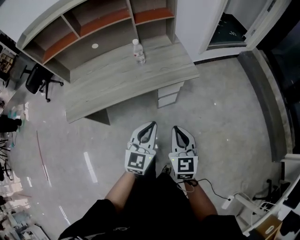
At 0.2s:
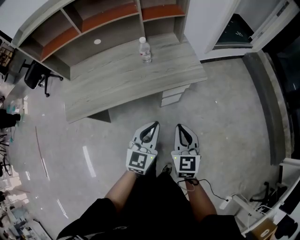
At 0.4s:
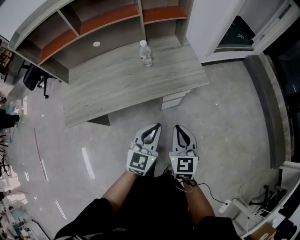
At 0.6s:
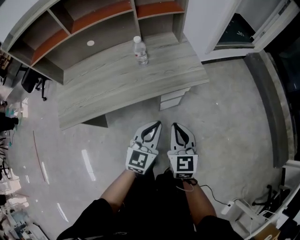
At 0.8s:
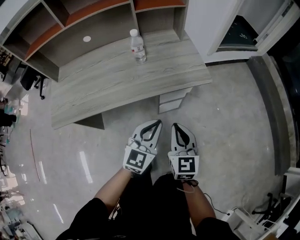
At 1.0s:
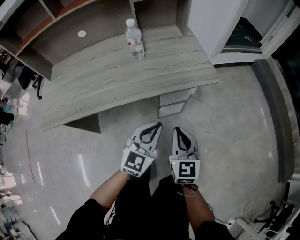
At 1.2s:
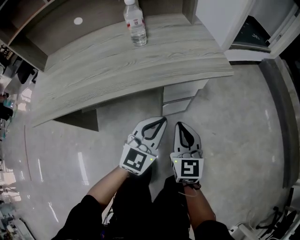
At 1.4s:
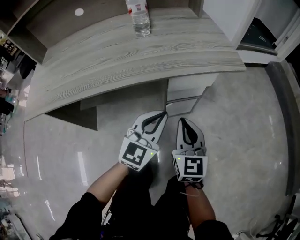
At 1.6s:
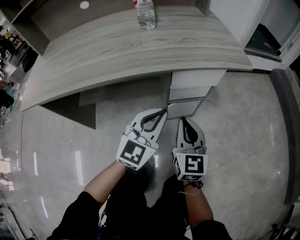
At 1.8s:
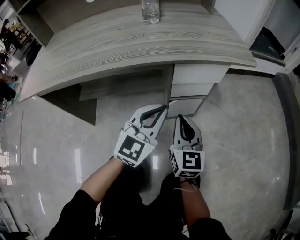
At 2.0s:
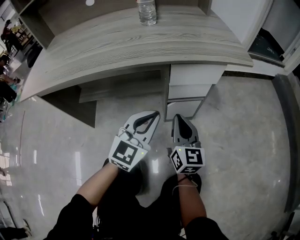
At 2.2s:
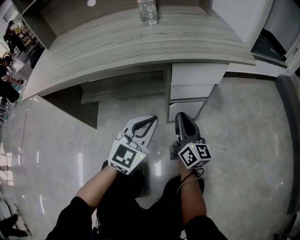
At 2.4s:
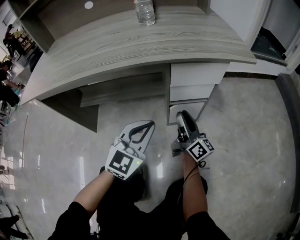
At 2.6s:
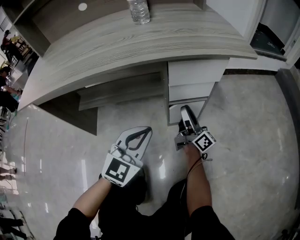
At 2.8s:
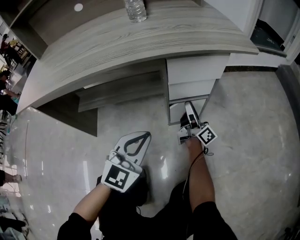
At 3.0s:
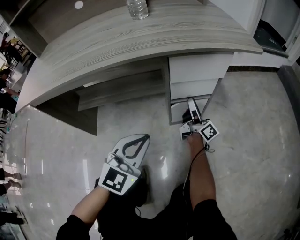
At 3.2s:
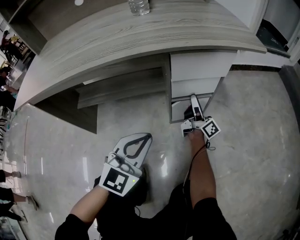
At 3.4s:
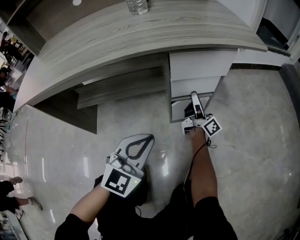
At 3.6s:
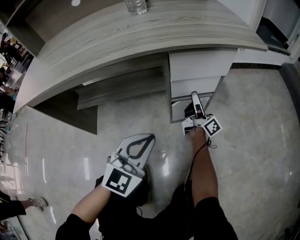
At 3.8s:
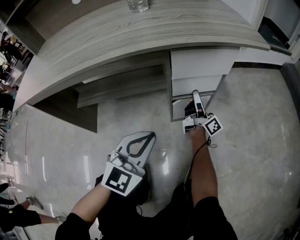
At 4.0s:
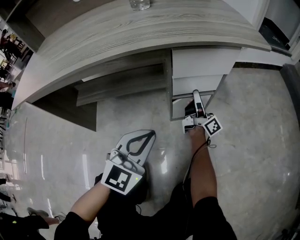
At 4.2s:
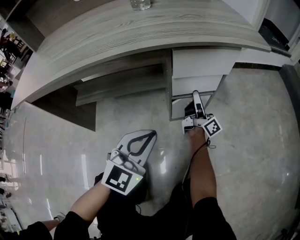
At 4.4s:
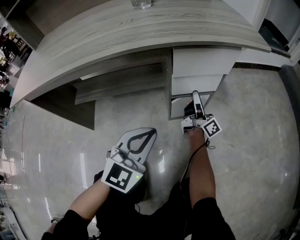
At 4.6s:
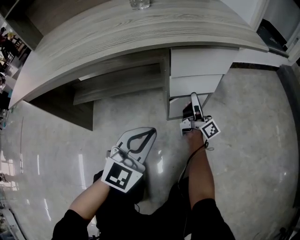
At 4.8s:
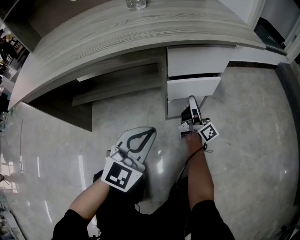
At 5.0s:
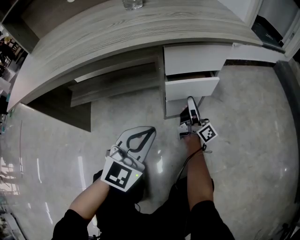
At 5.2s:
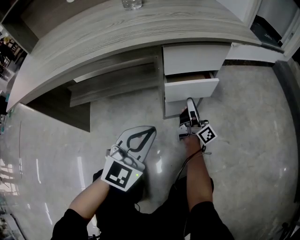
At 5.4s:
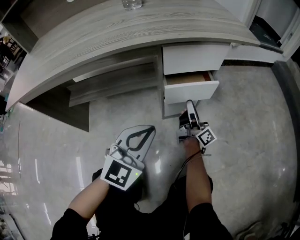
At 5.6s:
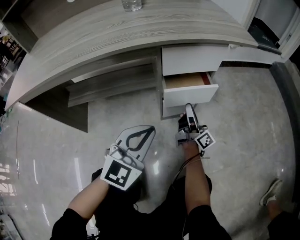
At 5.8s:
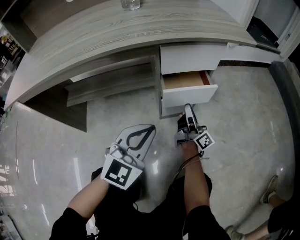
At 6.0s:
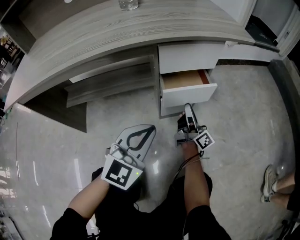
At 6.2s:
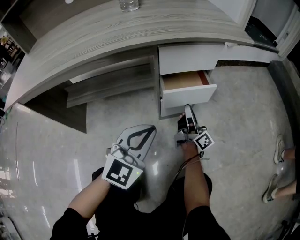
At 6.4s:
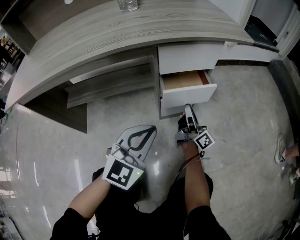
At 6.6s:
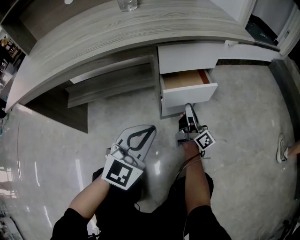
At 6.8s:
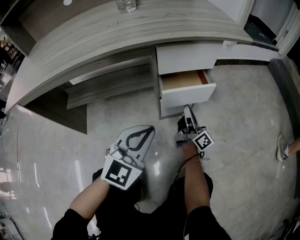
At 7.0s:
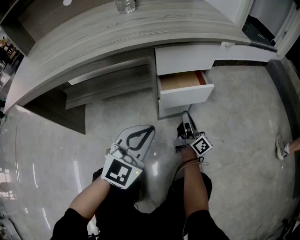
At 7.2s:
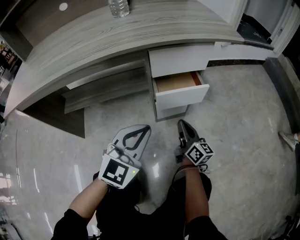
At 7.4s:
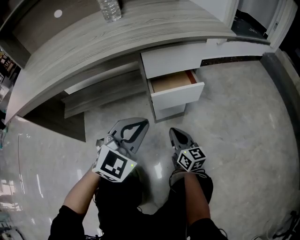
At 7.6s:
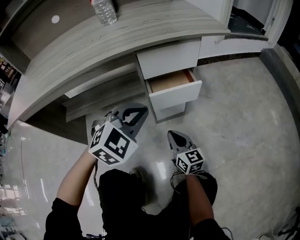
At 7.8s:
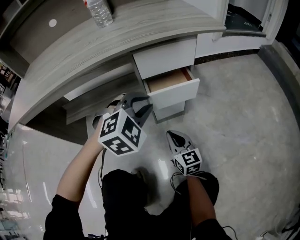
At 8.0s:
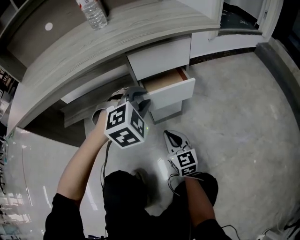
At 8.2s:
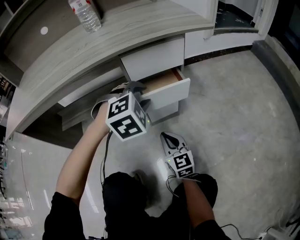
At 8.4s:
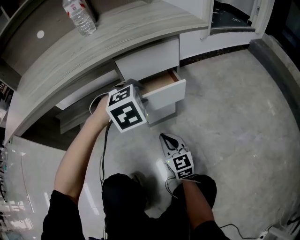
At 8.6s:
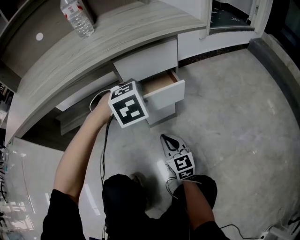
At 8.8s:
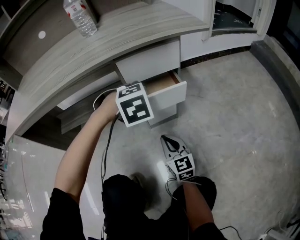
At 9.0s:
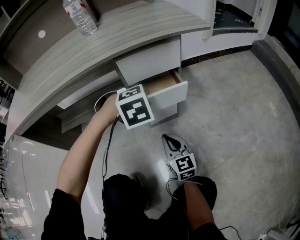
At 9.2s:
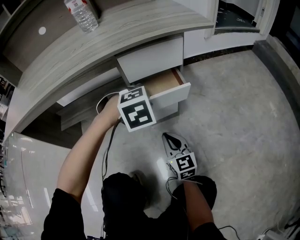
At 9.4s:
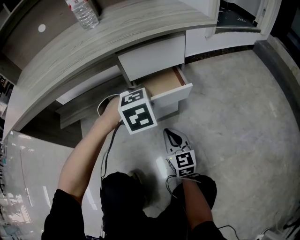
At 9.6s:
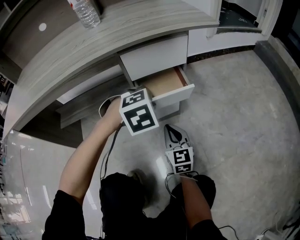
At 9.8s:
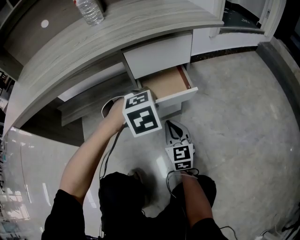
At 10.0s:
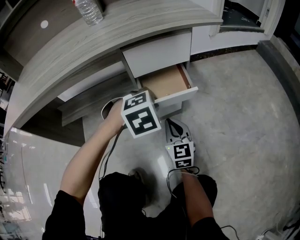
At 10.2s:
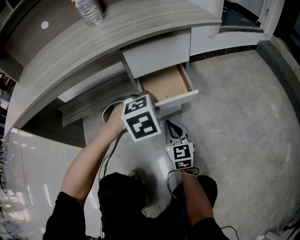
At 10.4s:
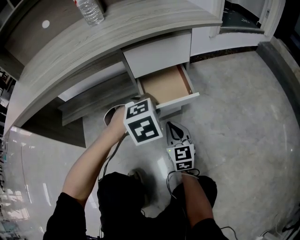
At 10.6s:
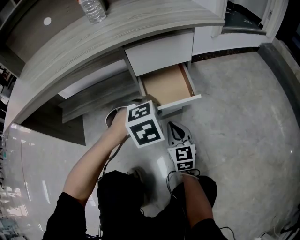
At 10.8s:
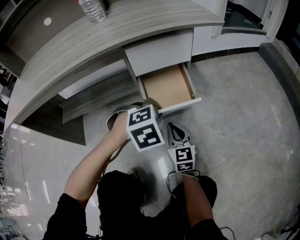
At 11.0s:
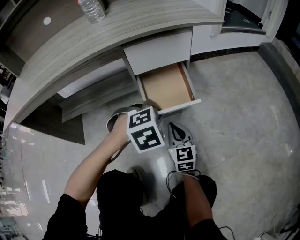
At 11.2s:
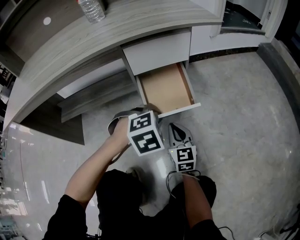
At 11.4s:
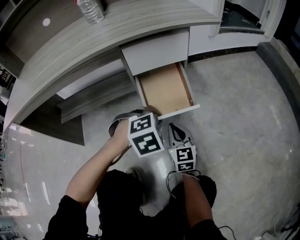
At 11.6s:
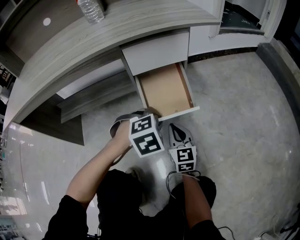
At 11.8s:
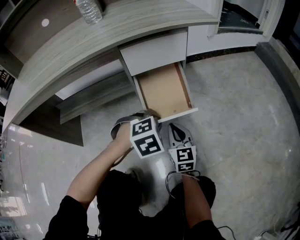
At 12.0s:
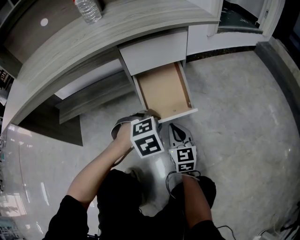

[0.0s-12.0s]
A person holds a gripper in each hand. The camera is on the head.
0.0s to 1.6s: The two grippers go approximately 40 cm downward and forward.
1.6s to 3.0s: The right gripper goes approximately 25 cm downward and forward, rolls clockwise, seen from behind, by approximately 60 degrees, and opens its fingers. Meanwhile the left gripper shifts roughly 10 cm downward and backward.
3.0s to 4.4s: The right gripper closes.
4.4s to 6.0s: The right gripper goes about 5 cm backward.
6.0s to 7.6s: The left gripper shifts some 5 cm forward, and turns by roughly 30 degrees; the right gripper goes some 10 cm backward, and points its fingers some 30 degrees further downward.
7.6s to 9.0s: The left gripper heads forward, downward and to the right, covering roughly 10 cm, tilts its fingers approximately 30 degrees downward, and opens up.
9.0s to 10.4s: The left gripper ends up roughly 5 cm from where it was.
10.4s to 12.0s: The left gripper travels downward by some 5 cm.

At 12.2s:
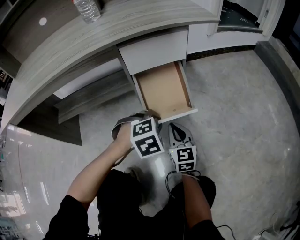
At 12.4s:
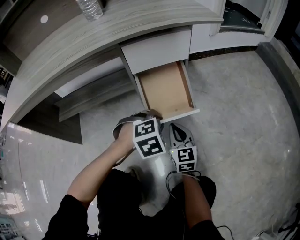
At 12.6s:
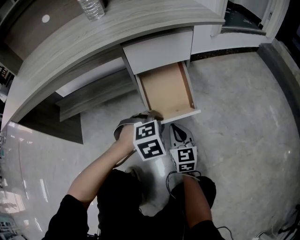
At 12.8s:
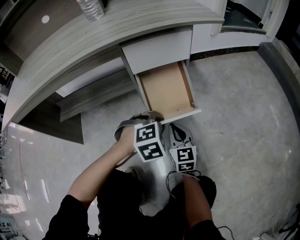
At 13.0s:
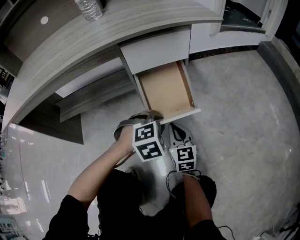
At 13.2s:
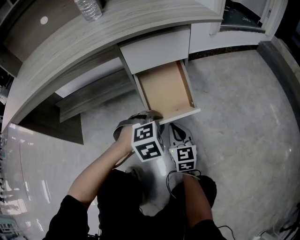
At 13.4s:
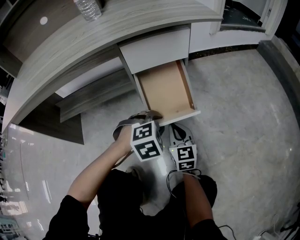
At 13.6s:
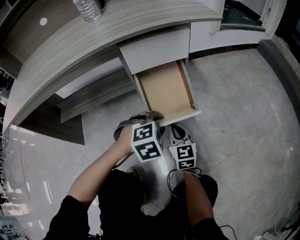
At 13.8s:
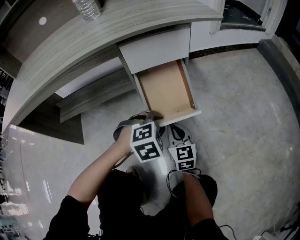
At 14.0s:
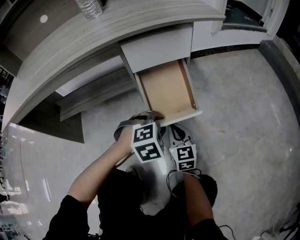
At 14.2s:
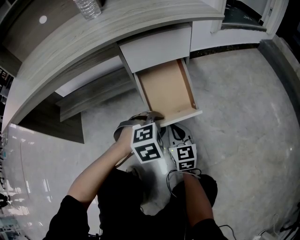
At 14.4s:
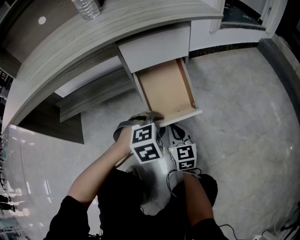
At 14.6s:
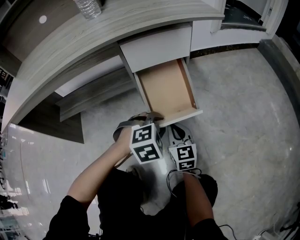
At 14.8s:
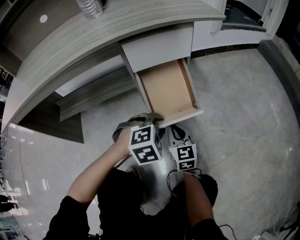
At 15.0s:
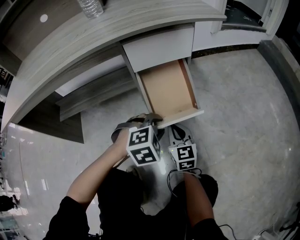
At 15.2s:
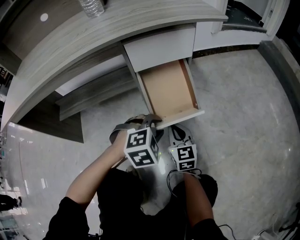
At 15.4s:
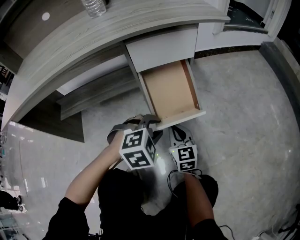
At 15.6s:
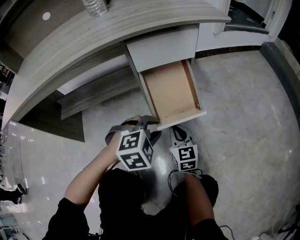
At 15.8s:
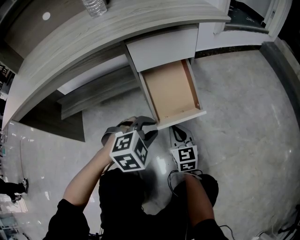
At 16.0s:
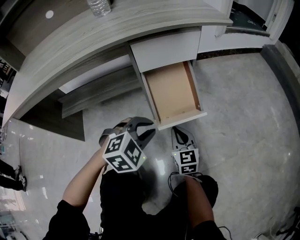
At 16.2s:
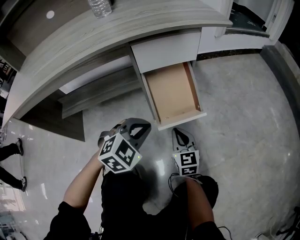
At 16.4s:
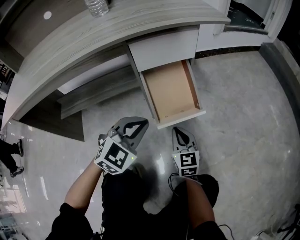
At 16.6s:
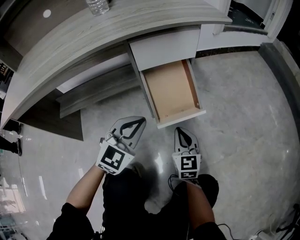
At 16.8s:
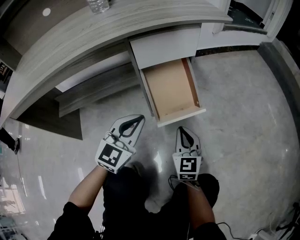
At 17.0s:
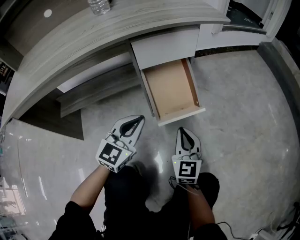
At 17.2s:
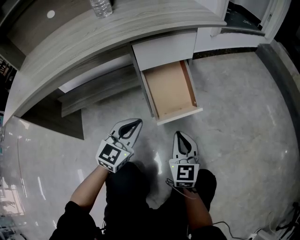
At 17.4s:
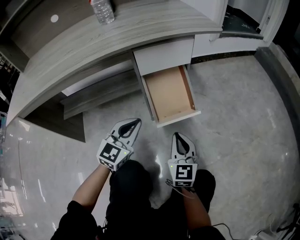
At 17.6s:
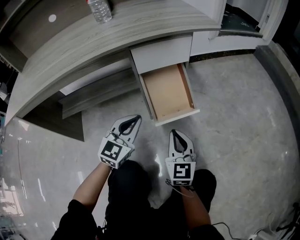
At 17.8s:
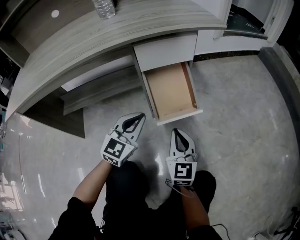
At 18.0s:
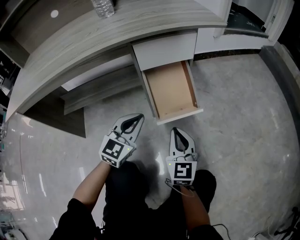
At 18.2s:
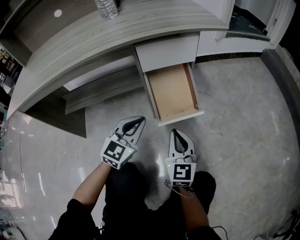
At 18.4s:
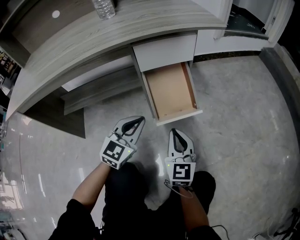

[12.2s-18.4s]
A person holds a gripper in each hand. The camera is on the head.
12.2s to 15.4s: The grippers make only small movements.
15.4s to 16.8s: The right gripper ends up roughly 5 cm from where it was, while the left gripper shifts roughly 10 cm upward and to the left, tips its fingers upward by roughly 40 degrees, and closes its fingers.
16.8s to 18.4s: The right gripper moves upward, about 5 cm.

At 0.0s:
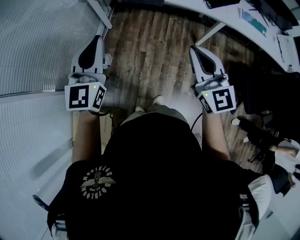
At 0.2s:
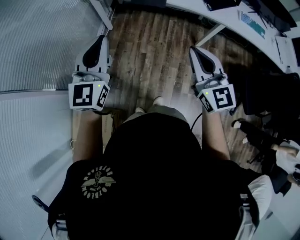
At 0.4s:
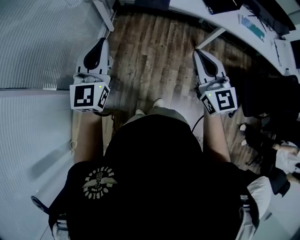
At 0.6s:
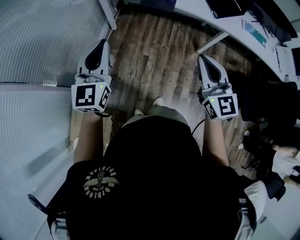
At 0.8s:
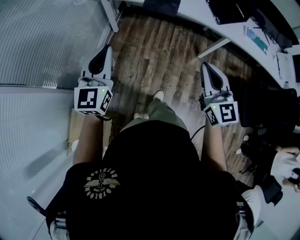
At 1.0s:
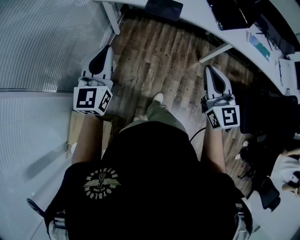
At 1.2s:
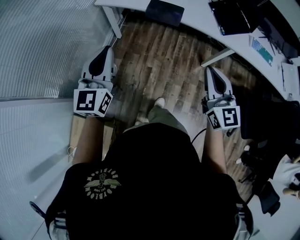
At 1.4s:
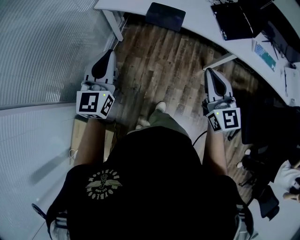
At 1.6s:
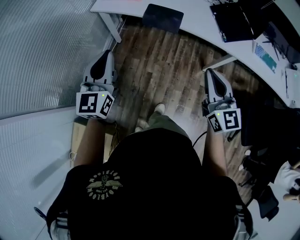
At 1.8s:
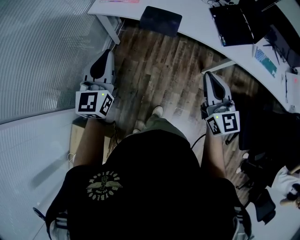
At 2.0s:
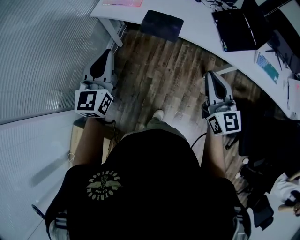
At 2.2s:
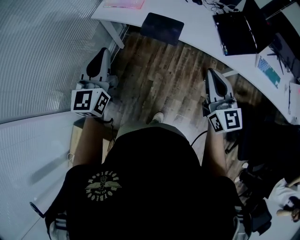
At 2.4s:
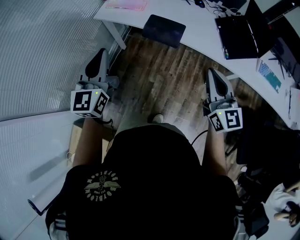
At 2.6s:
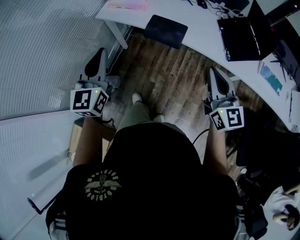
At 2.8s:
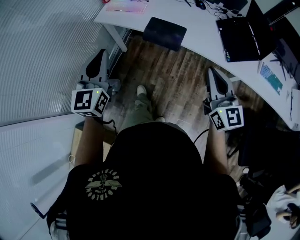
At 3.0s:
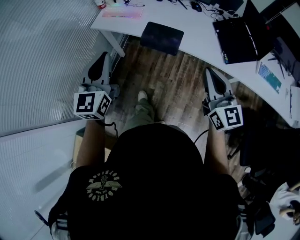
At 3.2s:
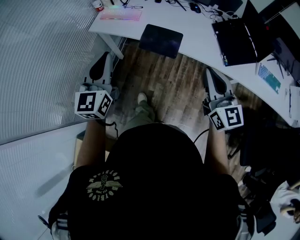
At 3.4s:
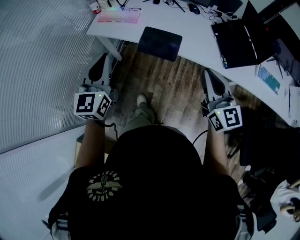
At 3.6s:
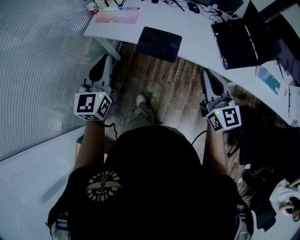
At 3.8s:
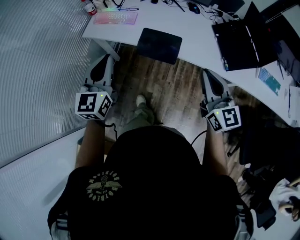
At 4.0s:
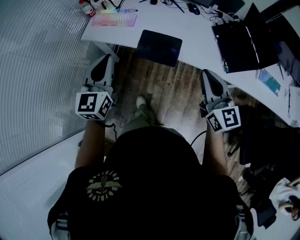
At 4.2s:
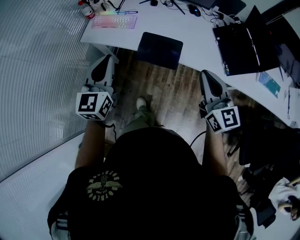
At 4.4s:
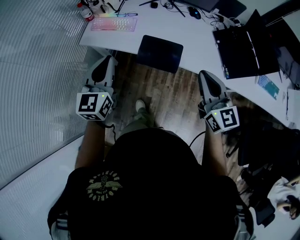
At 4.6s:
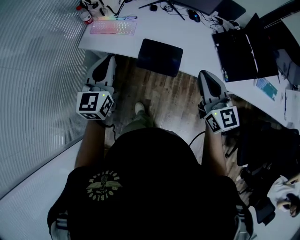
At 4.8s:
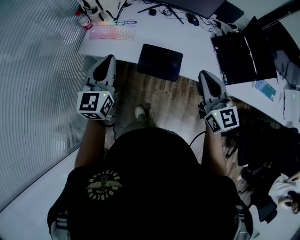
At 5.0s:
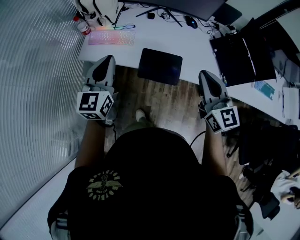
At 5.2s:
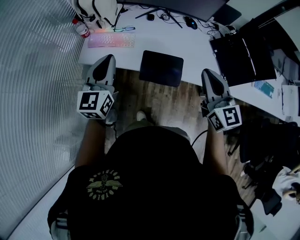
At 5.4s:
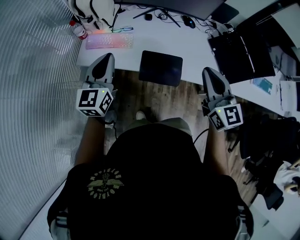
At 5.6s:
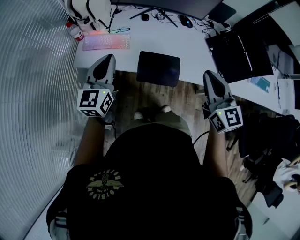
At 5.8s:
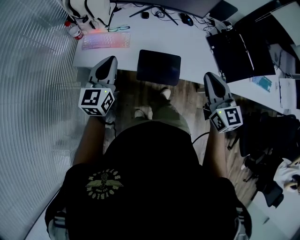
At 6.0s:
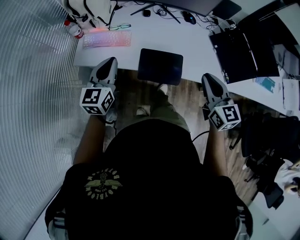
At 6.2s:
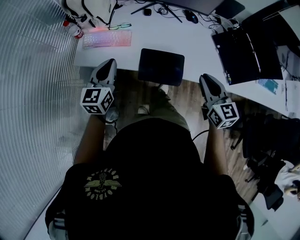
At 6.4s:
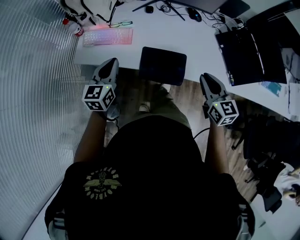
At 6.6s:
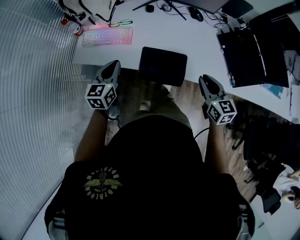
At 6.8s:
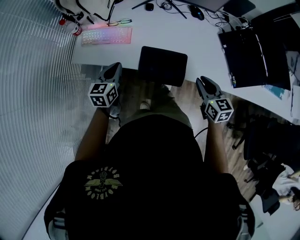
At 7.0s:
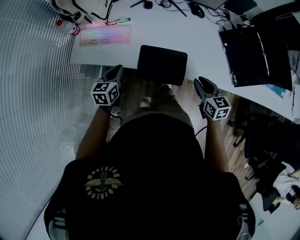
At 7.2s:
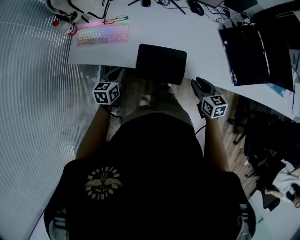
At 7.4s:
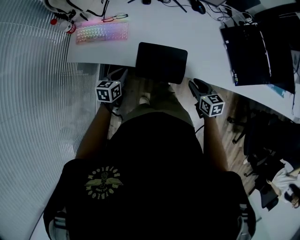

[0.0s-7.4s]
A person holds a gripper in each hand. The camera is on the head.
0.0s to 1.4s: Both grippers travel together forward, about 10 cm.
1.4s to 3.0s: The two grippers go about 20 cm forward and to the right.
3.0s to 4.4s: The two grippers go roughly 15 cm forward.
4.4s to 6.0s: The left gripper travels forward and downward by about 15 cm. The right gripper travels forward by approximately 10 cm.
6.0s to 7.4s: Both grippers move downward, some 25 cm. The left gripper changes its angle by approximately 30 degrees; the right gripper swivels some 30 degrees, and opens.
